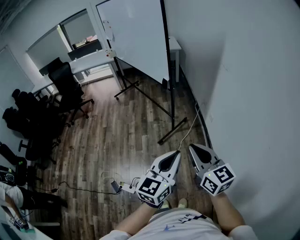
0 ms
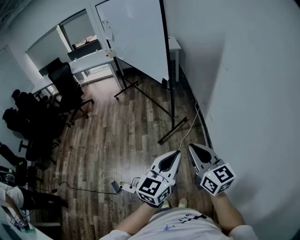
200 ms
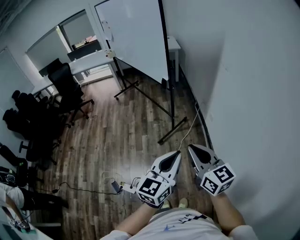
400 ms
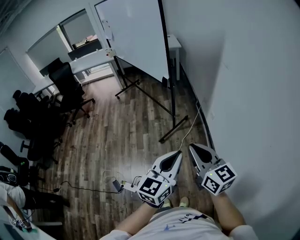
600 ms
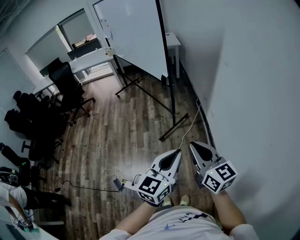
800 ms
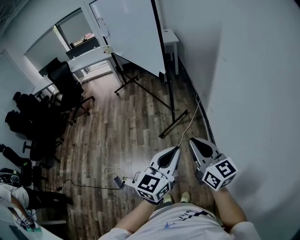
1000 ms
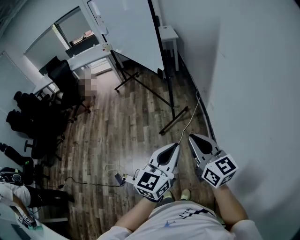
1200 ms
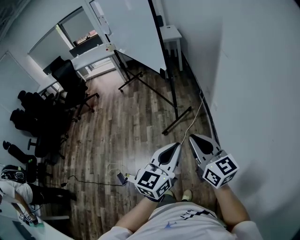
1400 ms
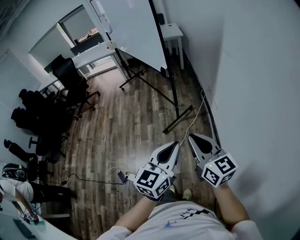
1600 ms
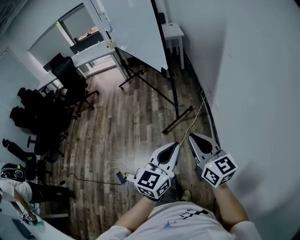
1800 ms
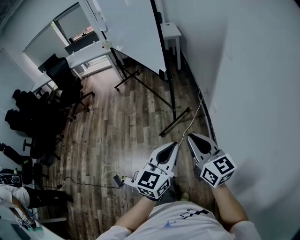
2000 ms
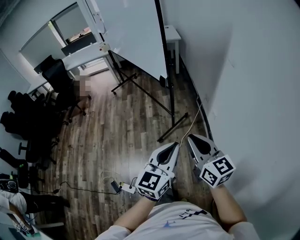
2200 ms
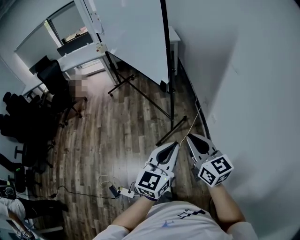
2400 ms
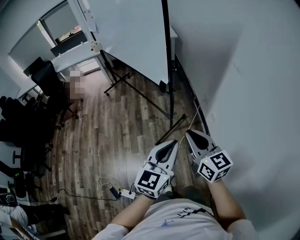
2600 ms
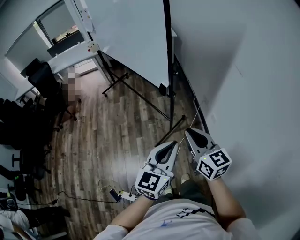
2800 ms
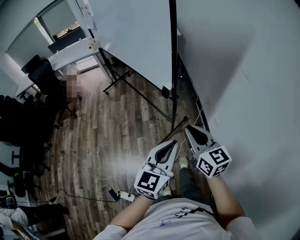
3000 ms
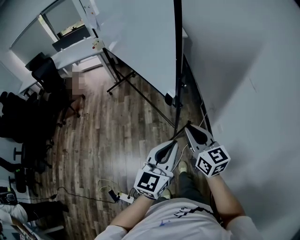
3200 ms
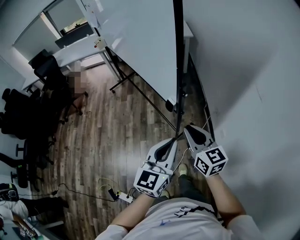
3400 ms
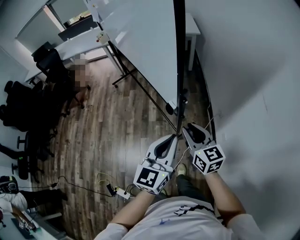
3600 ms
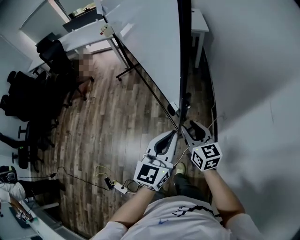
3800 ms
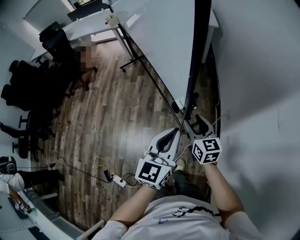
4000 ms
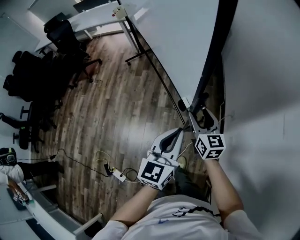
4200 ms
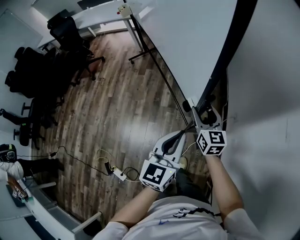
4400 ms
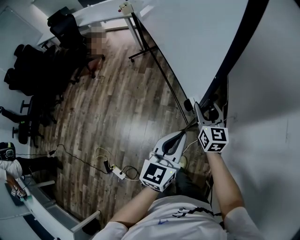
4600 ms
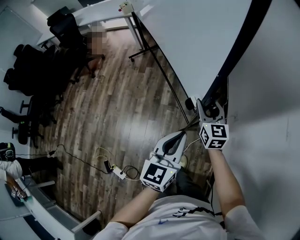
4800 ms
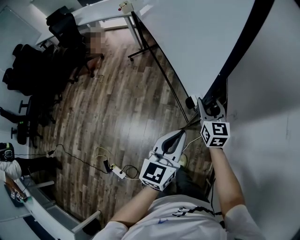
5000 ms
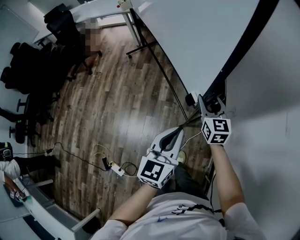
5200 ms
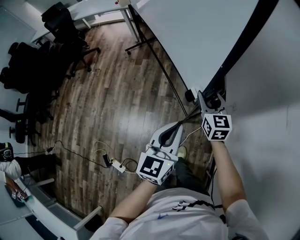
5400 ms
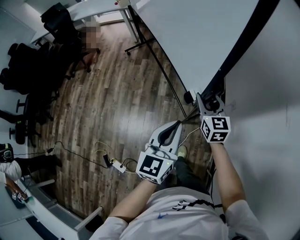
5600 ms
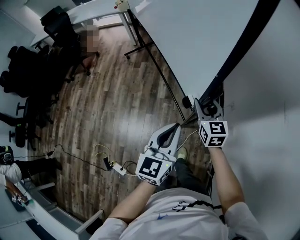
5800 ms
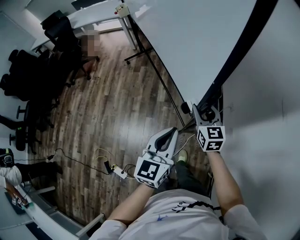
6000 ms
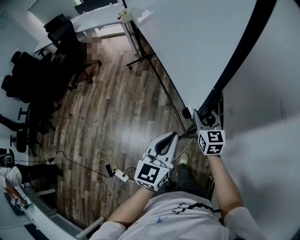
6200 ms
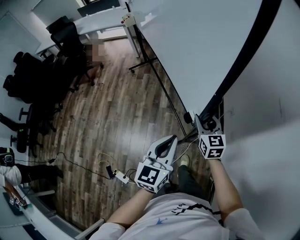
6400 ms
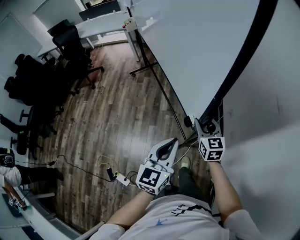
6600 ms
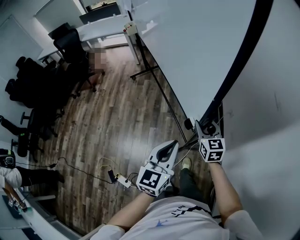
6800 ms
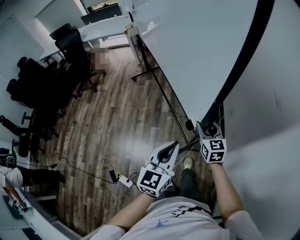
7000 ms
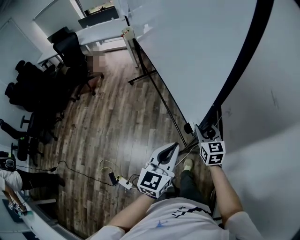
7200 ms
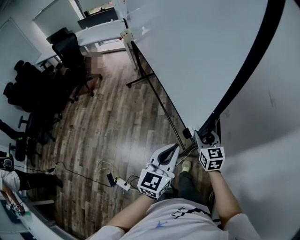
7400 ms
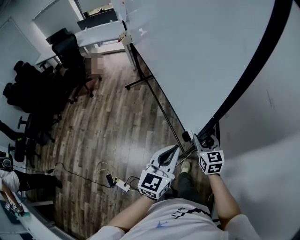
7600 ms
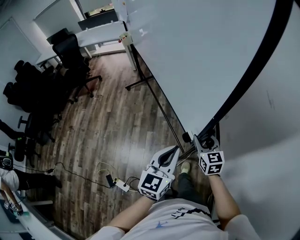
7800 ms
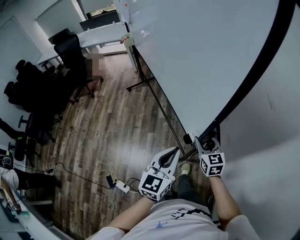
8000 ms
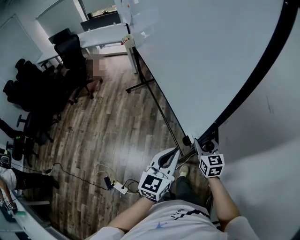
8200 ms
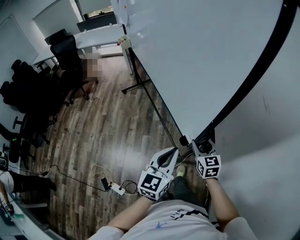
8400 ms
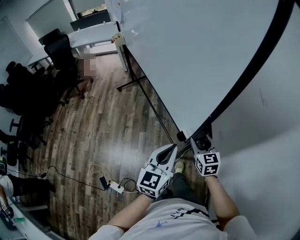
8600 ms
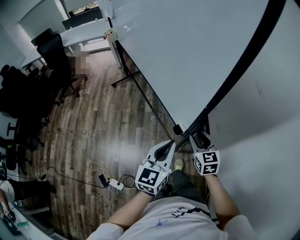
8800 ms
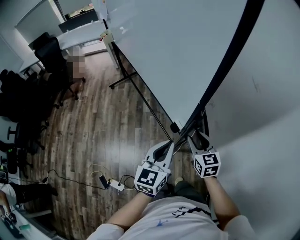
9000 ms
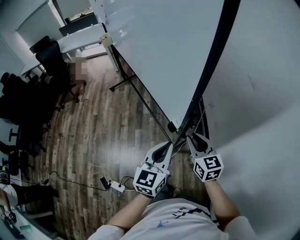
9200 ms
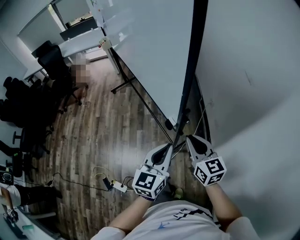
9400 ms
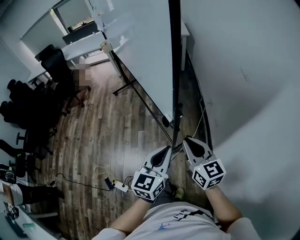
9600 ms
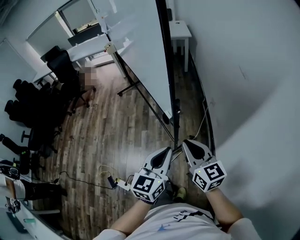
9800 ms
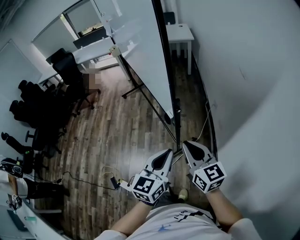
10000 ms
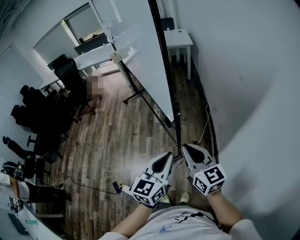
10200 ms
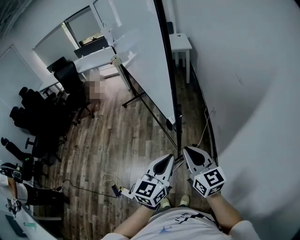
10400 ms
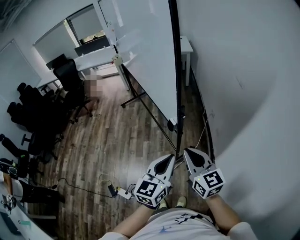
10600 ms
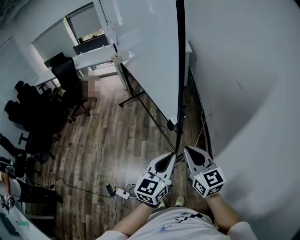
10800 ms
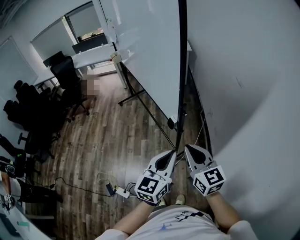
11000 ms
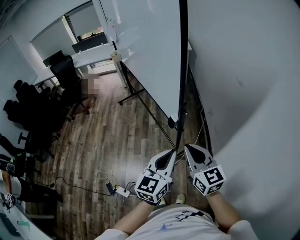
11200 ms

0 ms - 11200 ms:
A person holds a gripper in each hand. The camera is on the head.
0 ms - 1600 ms: The right gripper ends up some 5 cm from where it was; the left gripper changes place by about 5 cm.
1600 ms - 3200 ms: The grippers both shift forward by some 40 cm.
3200 ms - 4800 ms: The left gripper travels forward and downward by some 20 cm. Meanwhile the right gripper moves forward and downward, about 30 cm, and opens up.
4800 ms - 6400 ms: The right gripper shifts approximately 15 cm backward. The left gripper travels backward and to the left by some 10 cm.
6400 ms - 8000 ms: Both grippers move backward, approximately 10 cm.
8000 ms - 9600 ms: The right gripper travels backward and upward by roughly 20 cm, and closes. Meanwhile the left gripper is displaced backward and to the right by roughly 10 cm.
9600 ms - 11200 ms: Both grippers move backward and upward, roughly 10 cm.

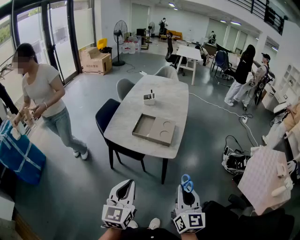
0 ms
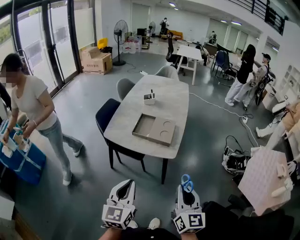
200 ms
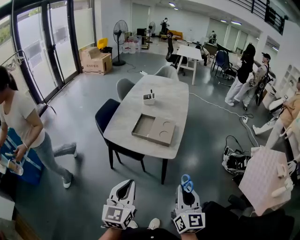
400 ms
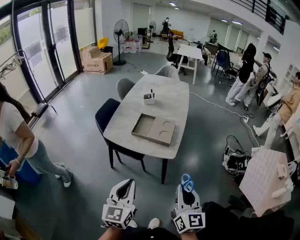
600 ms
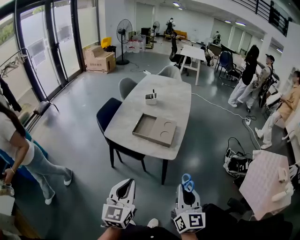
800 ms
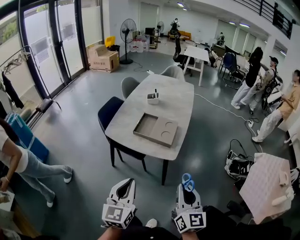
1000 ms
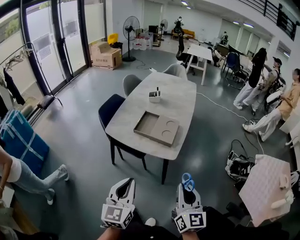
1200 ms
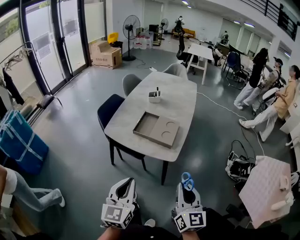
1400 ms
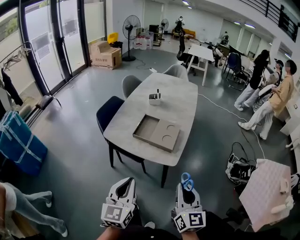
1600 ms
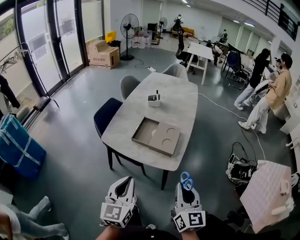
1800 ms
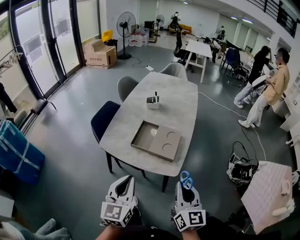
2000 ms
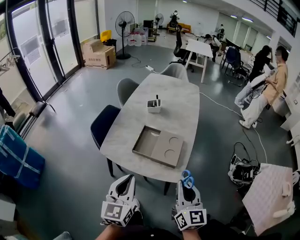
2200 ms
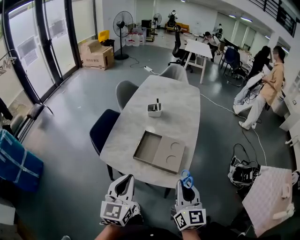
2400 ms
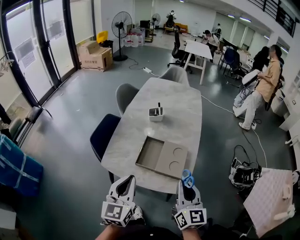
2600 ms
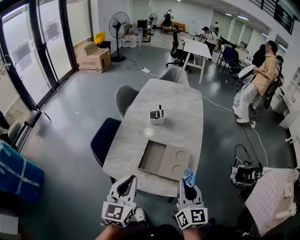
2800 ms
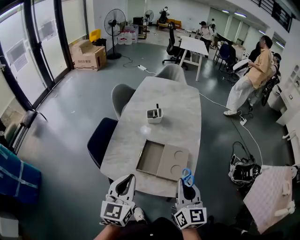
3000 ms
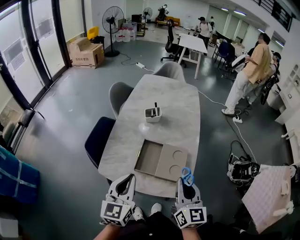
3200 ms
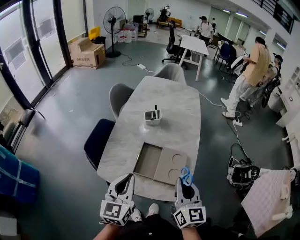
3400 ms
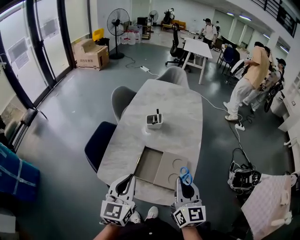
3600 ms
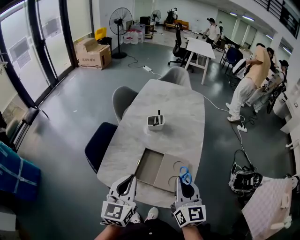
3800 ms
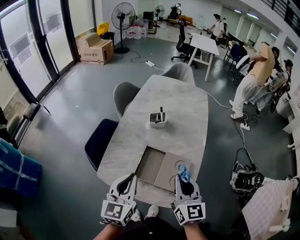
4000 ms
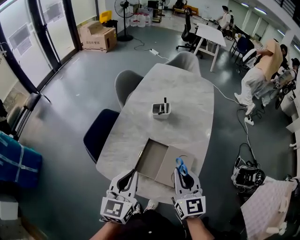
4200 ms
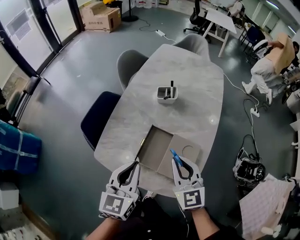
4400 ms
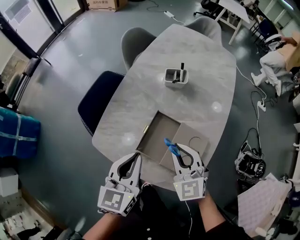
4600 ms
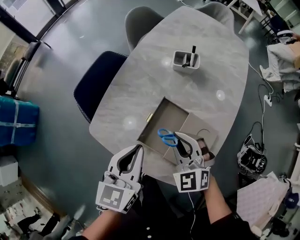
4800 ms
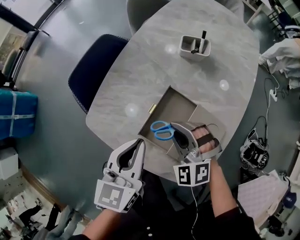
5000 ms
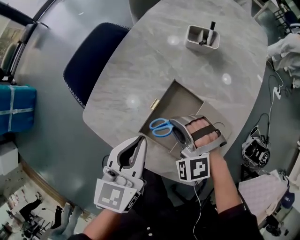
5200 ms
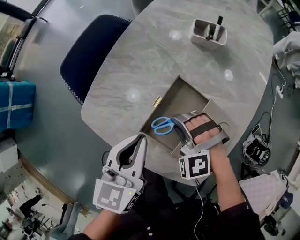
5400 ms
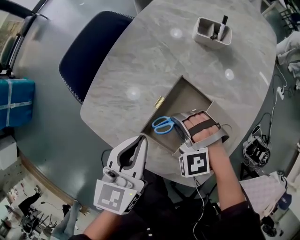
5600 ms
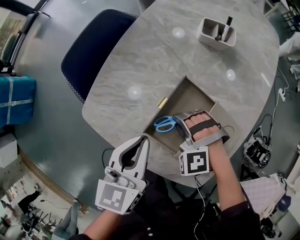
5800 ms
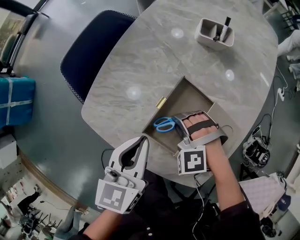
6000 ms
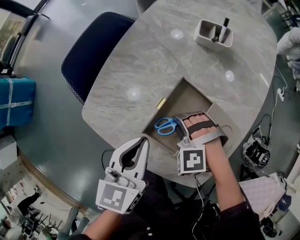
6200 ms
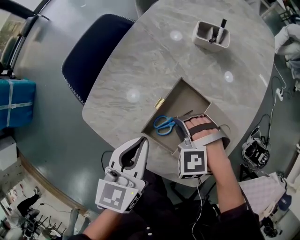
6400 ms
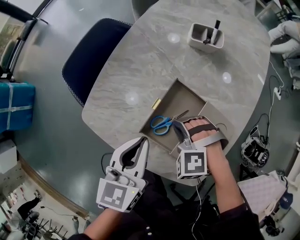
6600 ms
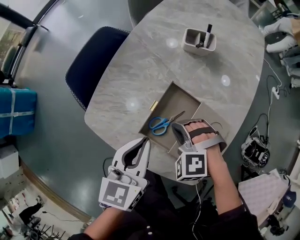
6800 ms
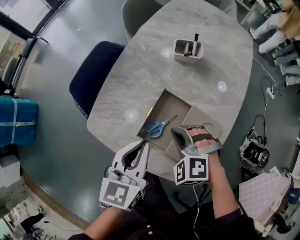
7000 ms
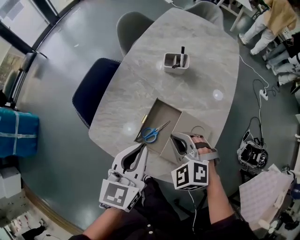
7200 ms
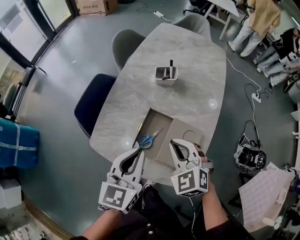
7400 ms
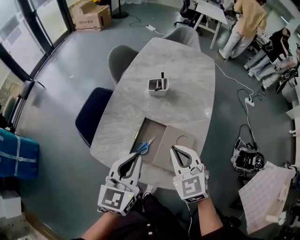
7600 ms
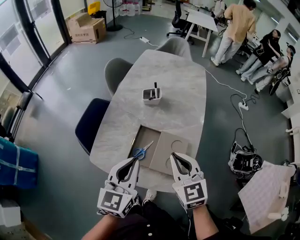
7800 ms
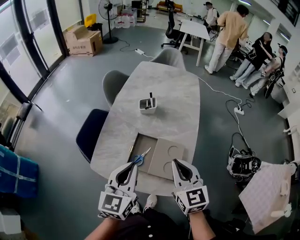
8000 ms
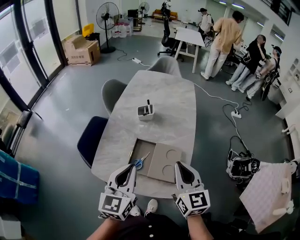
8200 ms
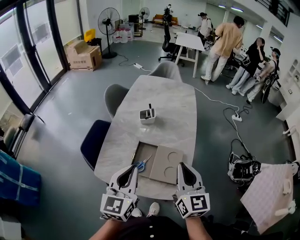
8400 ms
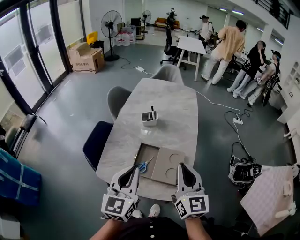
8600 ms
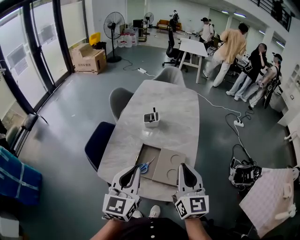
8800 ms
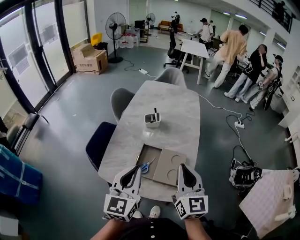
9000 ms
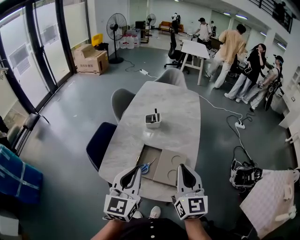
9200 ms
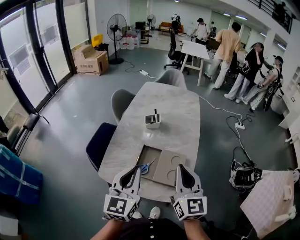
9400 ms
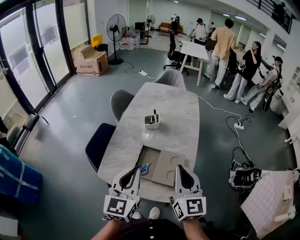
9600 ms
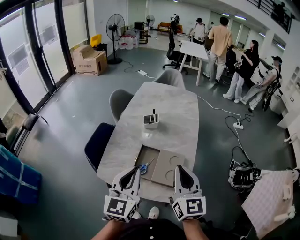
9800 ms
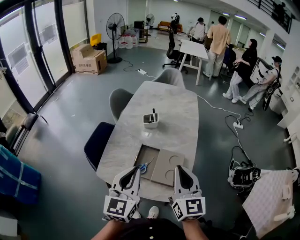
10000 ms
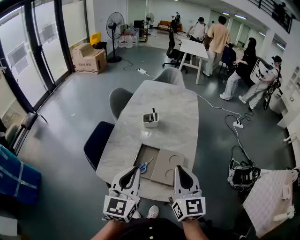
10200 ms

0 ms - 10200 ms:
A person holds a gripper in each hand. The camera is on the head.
0 ms - 1400 ms: The right gripper is displaced forward by some 5 cm.
1400 ms - 3000 ms: Both grippers move forward, about 30 cm.
3000 ms - 4400 ms: The grippers both shift forward and downward by roughly 15 cm. The right gripper rotates approximately 30 degrees.
4400 ms - 5800 ms: The left gripper heads downward, covering about 15 cm. Meanwhile the right gripper goes roughly 25 cm downward, and twists about 70 degrees counterclockwise, seen from behind.
5800 ms - 7200 ms: Both grippers move upward, approximately 15 cm. The right gripper rotates approximately 40 degrees.
7200 ms - 8800 ms: Both grippers travel together upward and backward, about 20 cm. The right gripper tilts its fingers approximately 50 degrees upward.
8800 ms - 10200 ms: There are only small adjustments of the grippers.

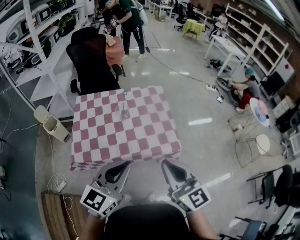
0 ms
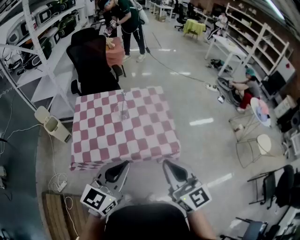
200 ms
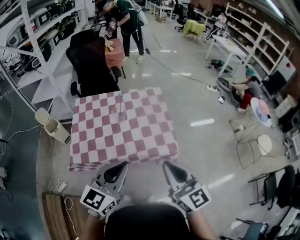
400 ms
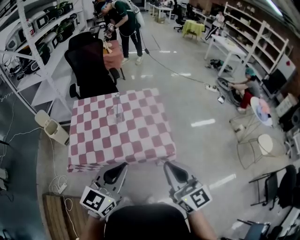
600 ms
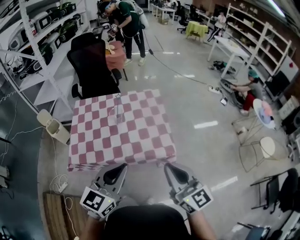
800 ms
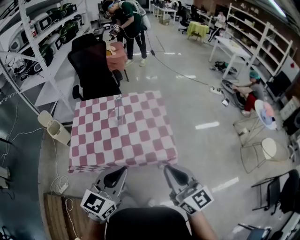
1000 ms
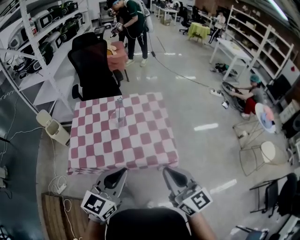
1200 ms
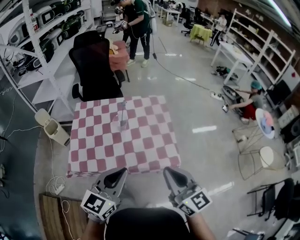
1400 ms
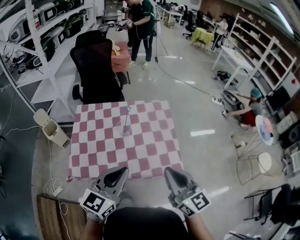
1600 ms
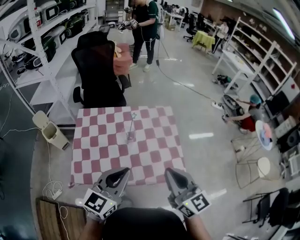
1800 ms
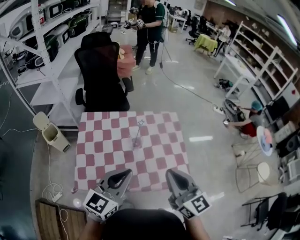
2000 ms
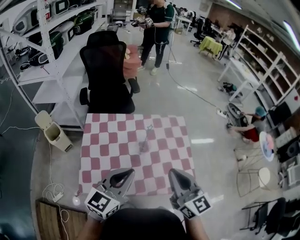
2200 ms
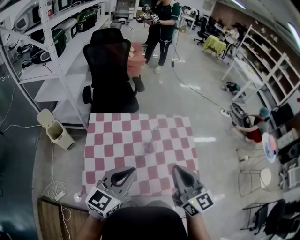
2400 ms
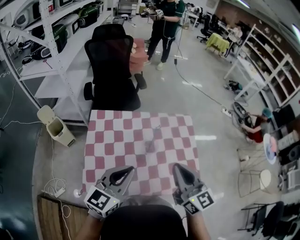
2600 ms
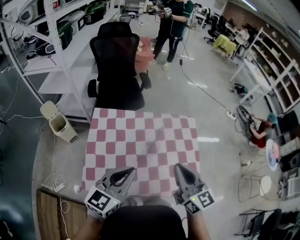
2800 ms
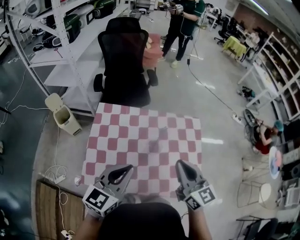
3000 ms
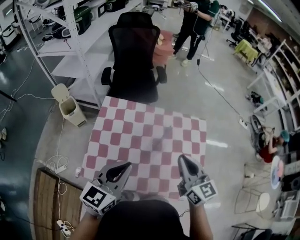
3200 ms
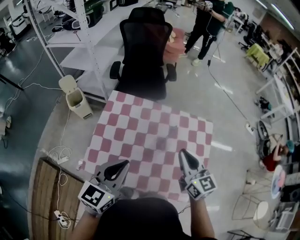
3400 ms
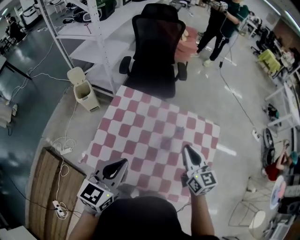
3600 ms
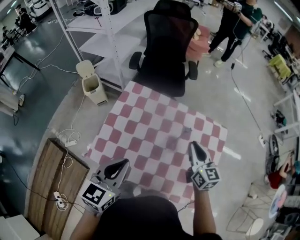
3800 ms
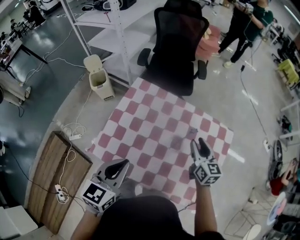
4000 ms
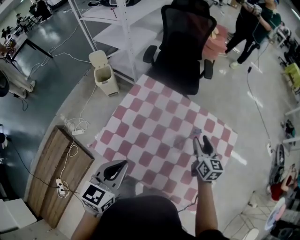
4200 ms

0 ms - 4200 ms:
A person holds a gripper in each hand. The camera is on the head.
0 ms - 1400 ms: The left gripper heads forward, covering some 5 cm. The right gripper travels forward and to the right by some 10 cm.
1400 ms - 2800 ms: The grippers both shift forward and to the left by about 25 cm.
2800 ms - 4200 ms: The left gripper is displaced downward by approximately 5 cm, and changes its angle by approximately 40 degrees. The right gripper travels forward and downward by about 30 cm, swivels about 20 degrees, and opens its fingers.
